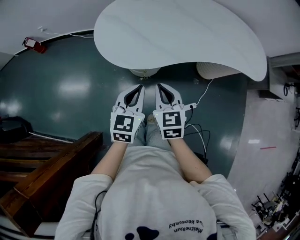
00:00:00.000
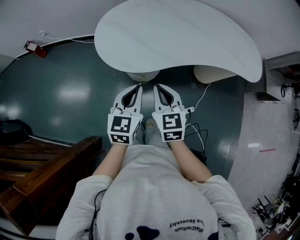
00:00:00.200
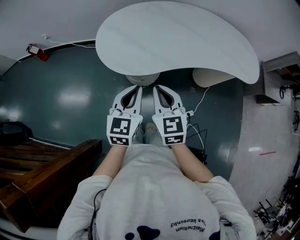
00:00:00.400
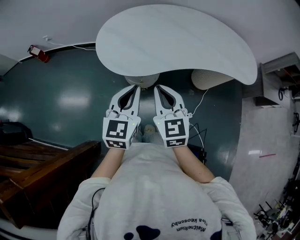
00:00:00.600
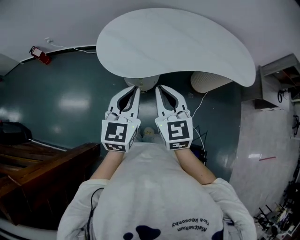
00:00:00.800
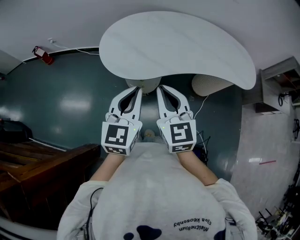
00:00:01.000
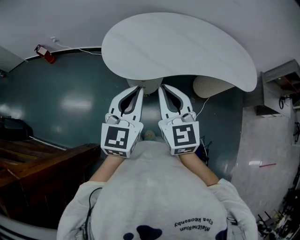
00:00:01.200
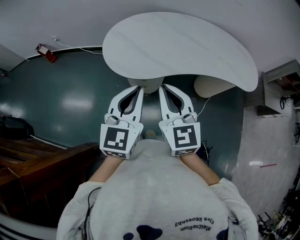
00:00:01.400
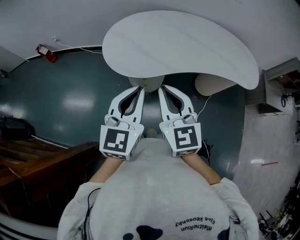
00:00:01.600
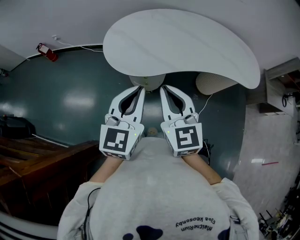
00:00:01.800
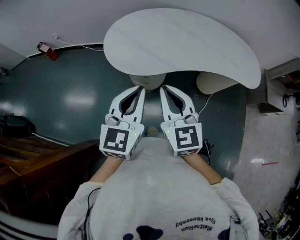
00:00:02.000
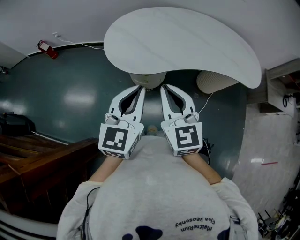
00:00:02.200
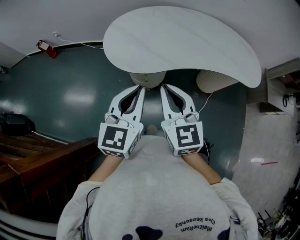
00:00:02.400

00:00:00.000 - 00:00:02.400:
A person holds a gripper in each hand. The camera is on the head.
00:00:00.000 - 00:00:01.200: Both grippers move upward, roughly 15 cm. The right gripper changes its angle by some 20 degrees.
00:00:01.200 - 00:00:02.400: The grippers move only a little.

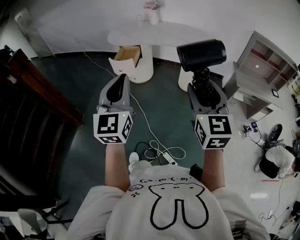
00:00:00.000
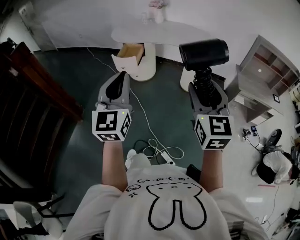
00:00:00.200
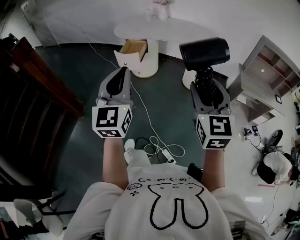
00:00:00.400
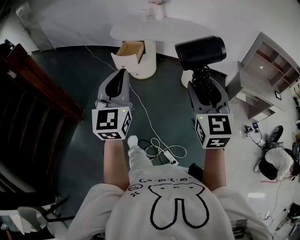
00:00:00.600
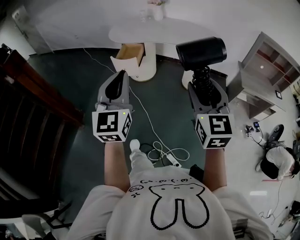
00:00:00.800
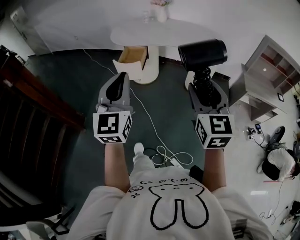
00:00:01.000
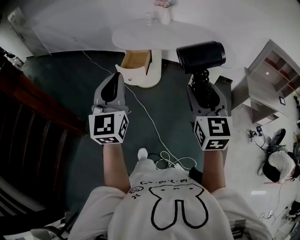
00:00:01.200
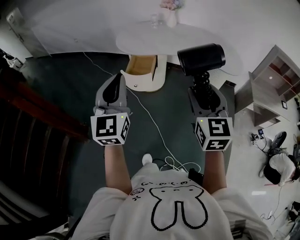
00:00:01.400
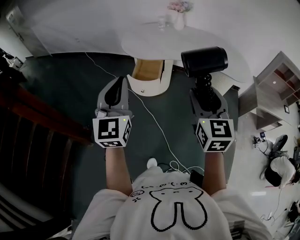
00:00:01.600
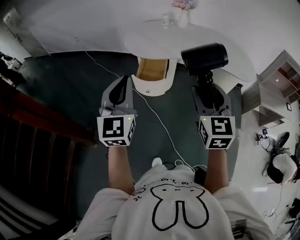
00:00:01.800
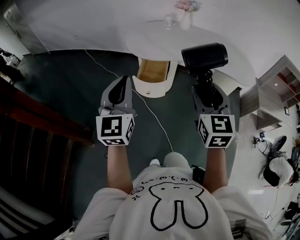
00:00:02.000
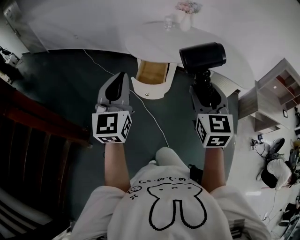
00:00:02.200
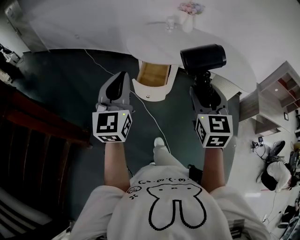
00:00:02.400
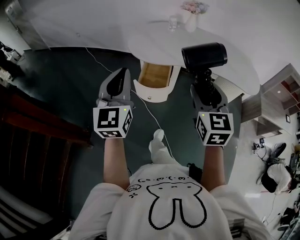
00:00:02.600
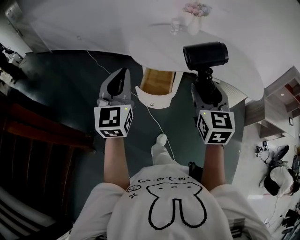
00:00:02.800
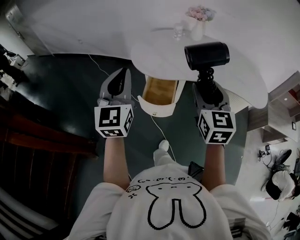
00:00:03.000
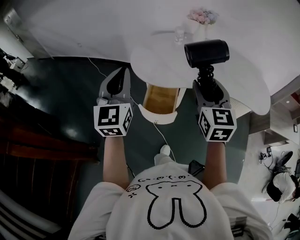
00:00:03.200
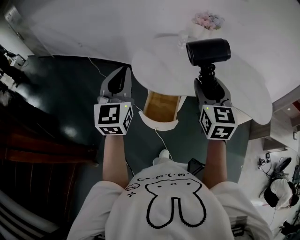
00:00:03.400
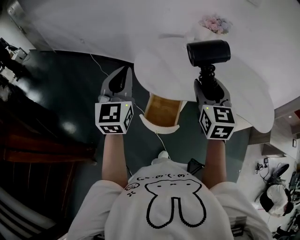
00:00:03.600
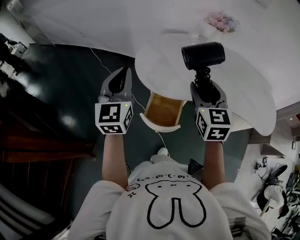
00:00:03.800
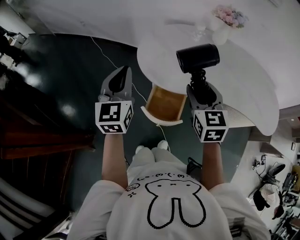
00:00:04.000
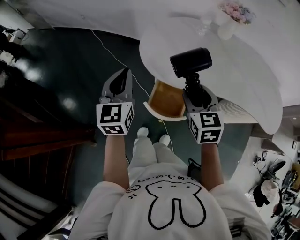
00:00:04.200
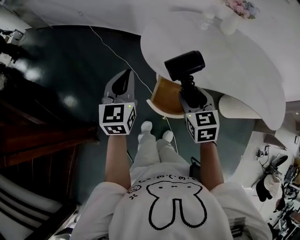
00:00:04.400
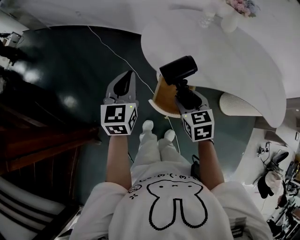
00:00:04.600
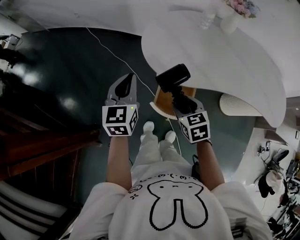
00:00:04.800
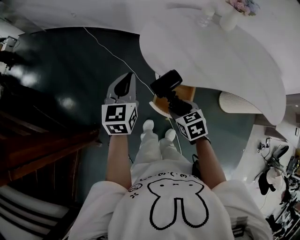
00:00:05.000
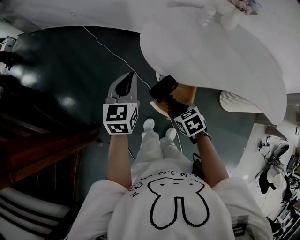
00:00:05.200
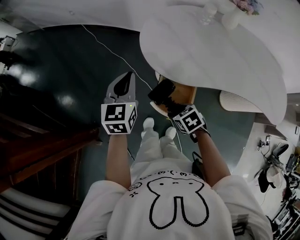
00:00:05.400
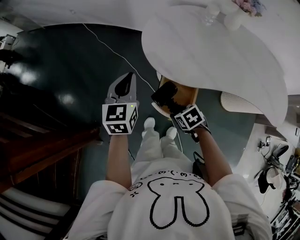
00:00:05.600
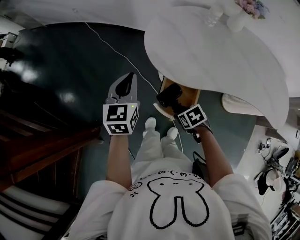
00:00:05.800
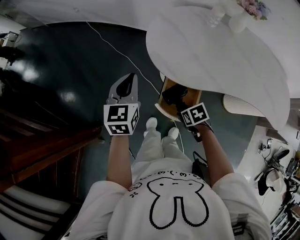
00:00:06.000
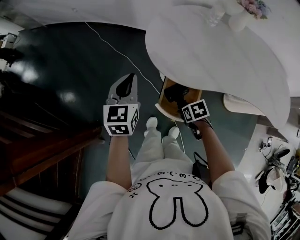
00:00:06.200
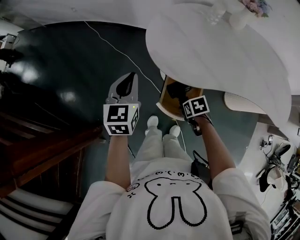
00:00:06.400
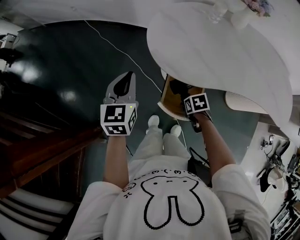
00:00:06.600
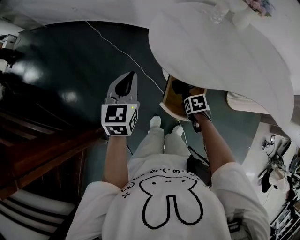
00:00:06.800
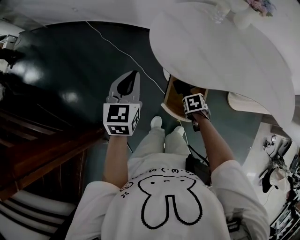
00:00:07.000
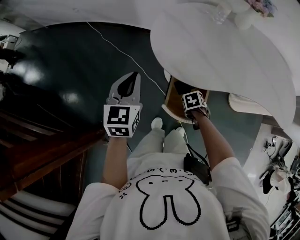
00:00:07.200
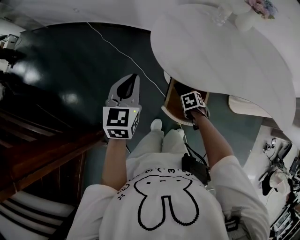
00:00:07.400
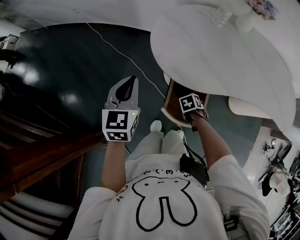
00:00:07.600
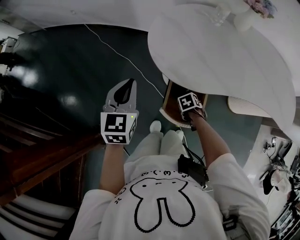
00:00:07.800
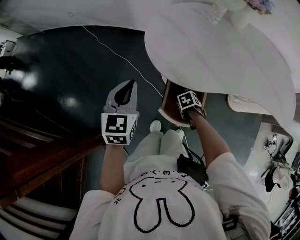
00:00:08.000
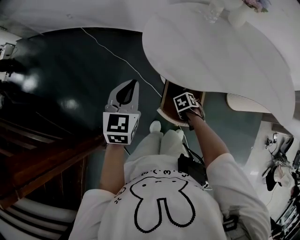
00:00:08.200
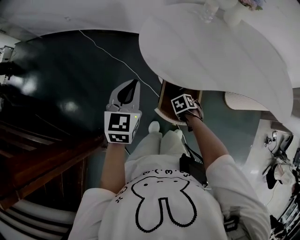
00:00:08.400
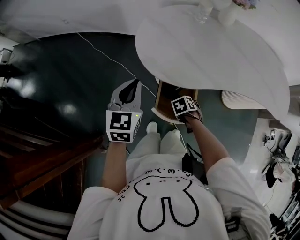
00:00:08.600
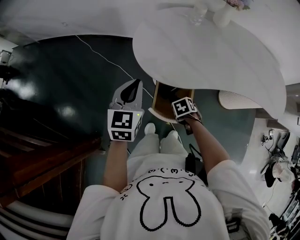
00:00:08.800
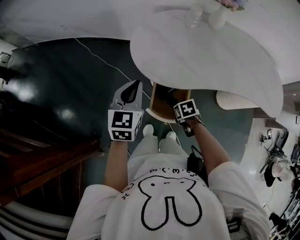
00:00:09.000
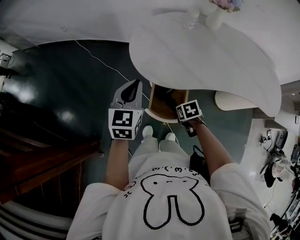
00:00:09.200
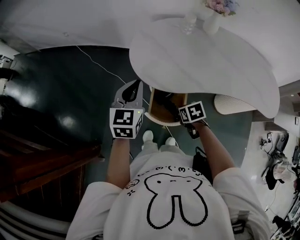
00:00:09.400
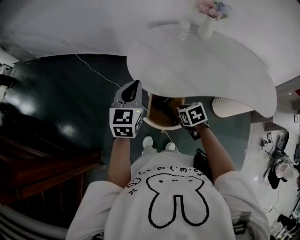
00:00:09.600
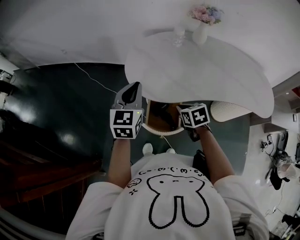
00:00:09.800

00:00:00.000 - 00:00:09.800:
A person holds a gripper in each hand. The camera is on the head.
00:00:00.000 - 00:00:01.400: Both grippers move forward and to the left, roughly 35 cm.
00:00:01.400 - 00:00:02.800: The grippers both shift forward and to the left by about 25 cm.
00:00:02.800 - 00:00:04.200: The two grippers go some 25 cm forward and downward. The right gripper changes its angle by about 20 degrees.
00:00:04.200 - 00:00:05.600: The left gripper heads downward and forward, covering roughly 10 cm. Meanwhile the right gripper is displaced downward by some 25 cm, and angles its fingers downward, by some 40 degrees.
00:00:05.600 - 00:00:07.000: The right gripper heads downward, covering approximately 10 cm, and turns by approximately 20 degrees.
00:00:07.000 - 00:00:08.400: The grippers move only a little.
00:00:08.400 - 00:00:09.800: The right gripper heads upward, covering roughly 25 cm, tilts its fingers some 30 degrees upward, and closes, while the left gripper moves upward, roughly 10 cm.

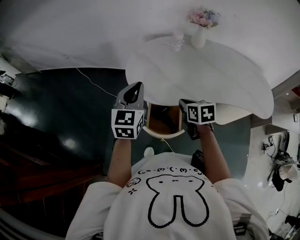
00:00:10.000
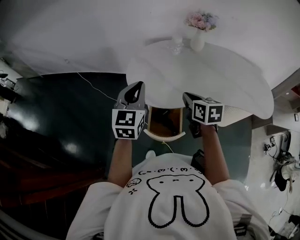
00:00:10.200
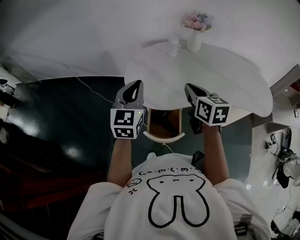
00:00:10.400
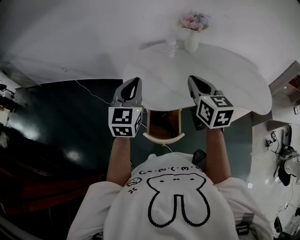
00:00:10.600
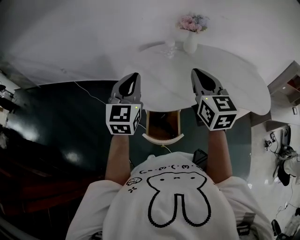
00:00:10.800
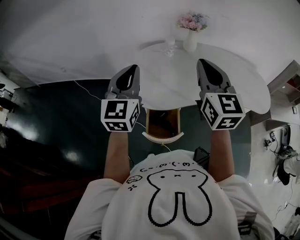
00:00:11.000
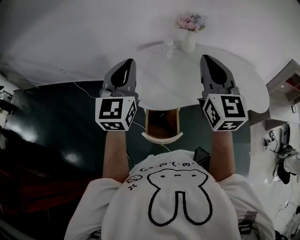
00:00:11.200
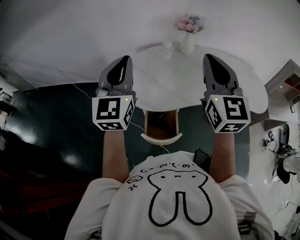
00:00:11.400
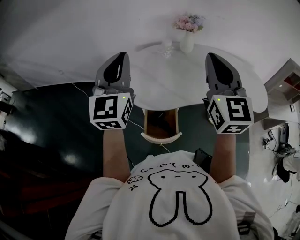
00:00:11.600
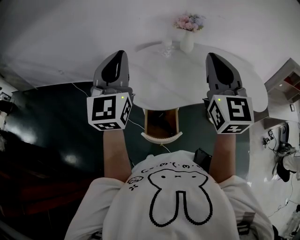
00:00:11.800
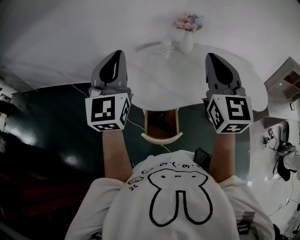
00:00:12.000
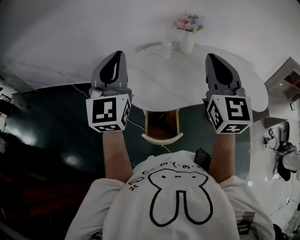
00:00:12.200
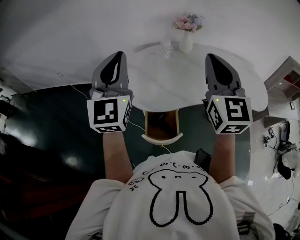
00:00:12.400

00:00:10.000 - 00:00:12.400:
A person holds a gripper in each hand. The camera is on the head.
00:00:10.000 - 00:00:11.200: The right gripper is displaced upward by some 30 cm, and angles its fingers upward, by about 50 degrees. Meanwhile the left gripper shifts some 15 cm upward.
00:00:11.200 - 00:00:12.400: The grippers move only a little.

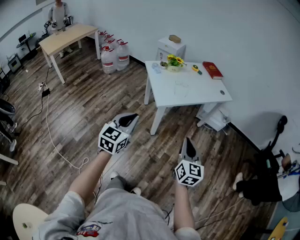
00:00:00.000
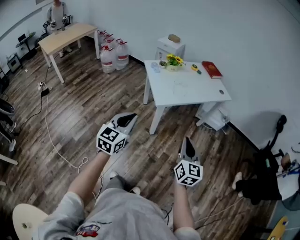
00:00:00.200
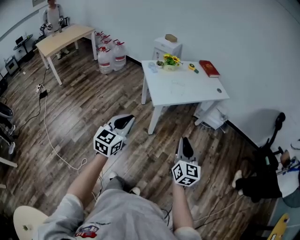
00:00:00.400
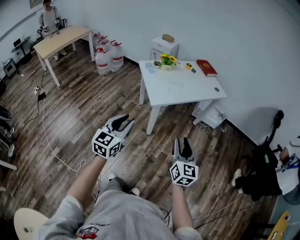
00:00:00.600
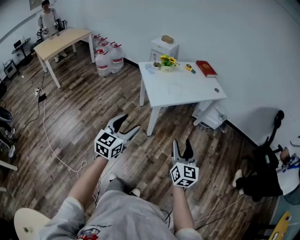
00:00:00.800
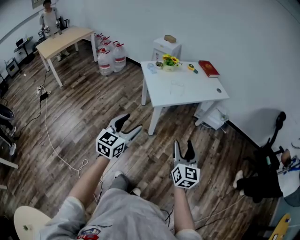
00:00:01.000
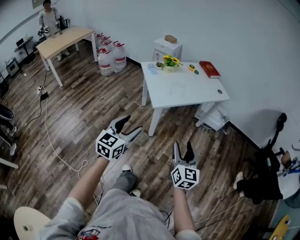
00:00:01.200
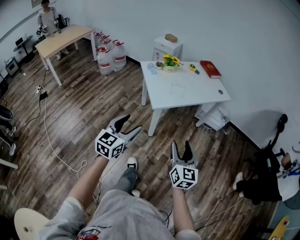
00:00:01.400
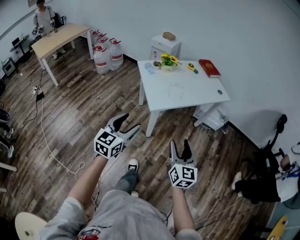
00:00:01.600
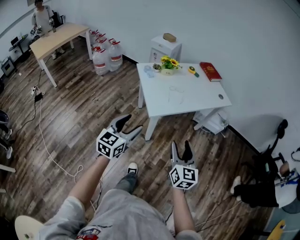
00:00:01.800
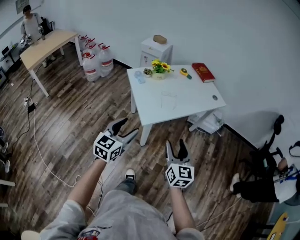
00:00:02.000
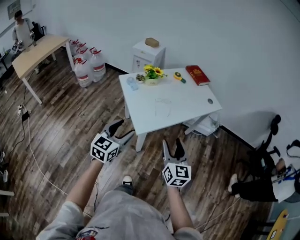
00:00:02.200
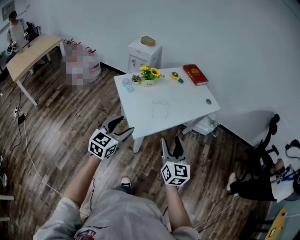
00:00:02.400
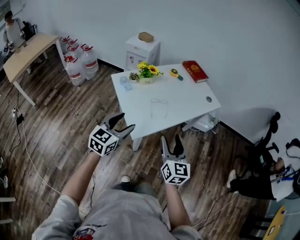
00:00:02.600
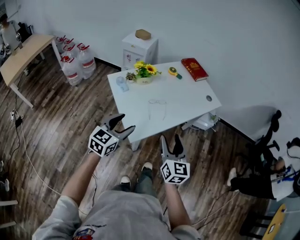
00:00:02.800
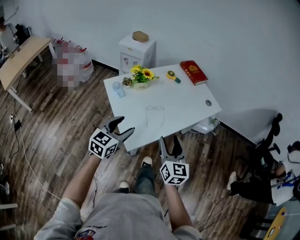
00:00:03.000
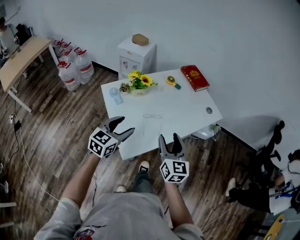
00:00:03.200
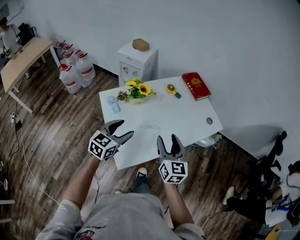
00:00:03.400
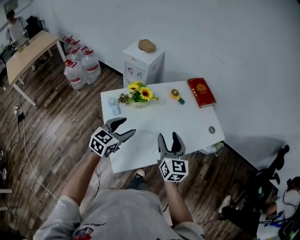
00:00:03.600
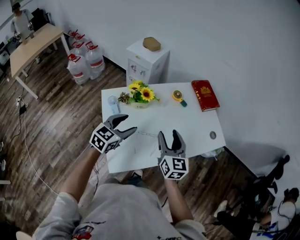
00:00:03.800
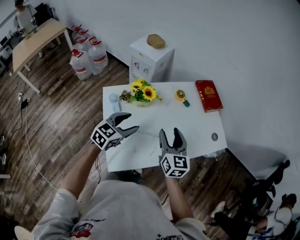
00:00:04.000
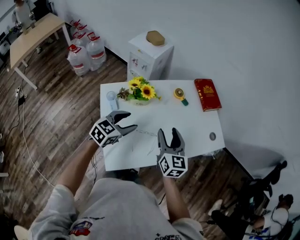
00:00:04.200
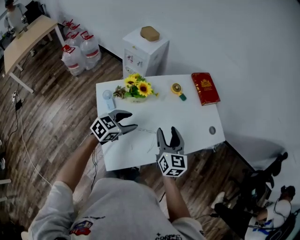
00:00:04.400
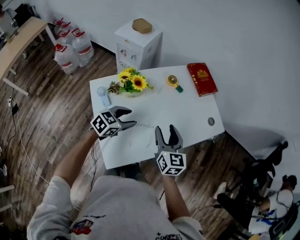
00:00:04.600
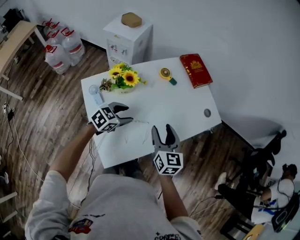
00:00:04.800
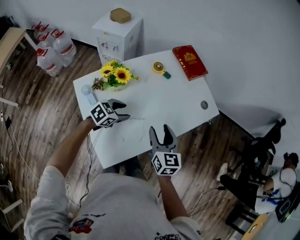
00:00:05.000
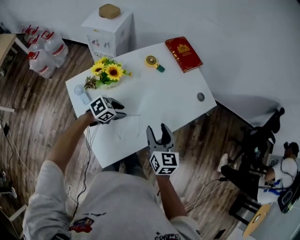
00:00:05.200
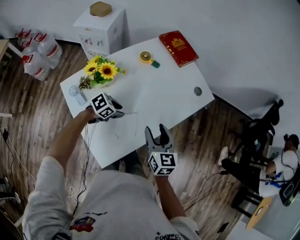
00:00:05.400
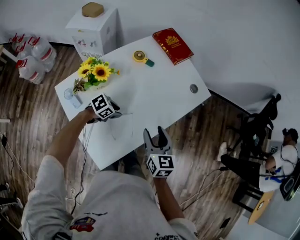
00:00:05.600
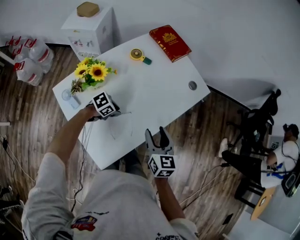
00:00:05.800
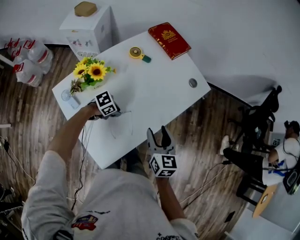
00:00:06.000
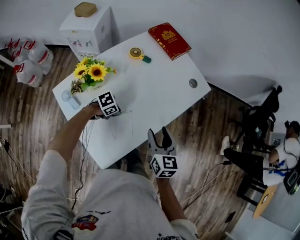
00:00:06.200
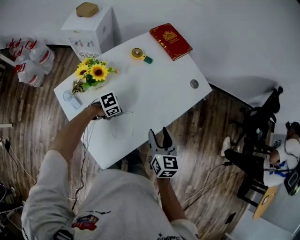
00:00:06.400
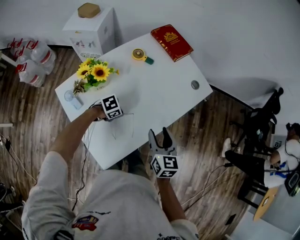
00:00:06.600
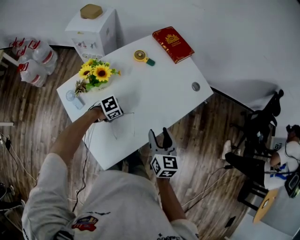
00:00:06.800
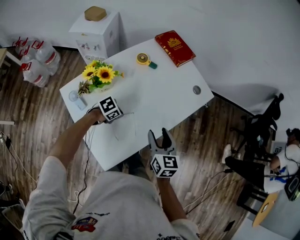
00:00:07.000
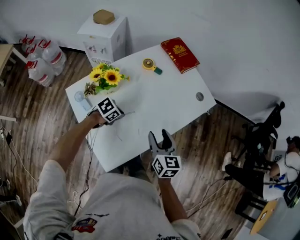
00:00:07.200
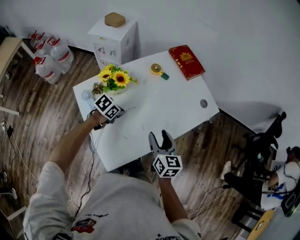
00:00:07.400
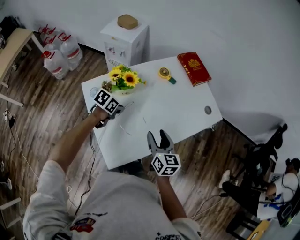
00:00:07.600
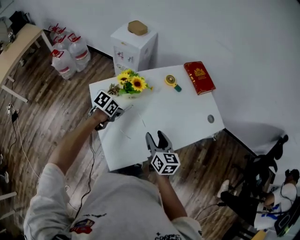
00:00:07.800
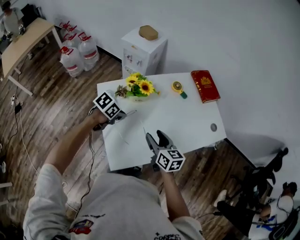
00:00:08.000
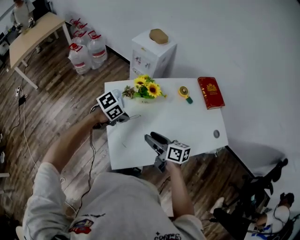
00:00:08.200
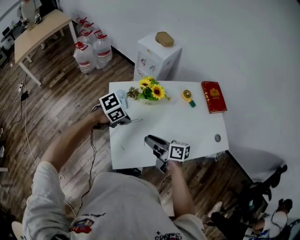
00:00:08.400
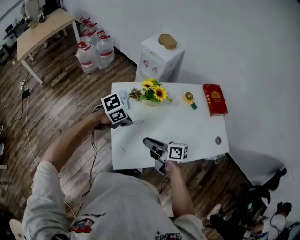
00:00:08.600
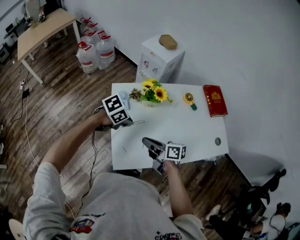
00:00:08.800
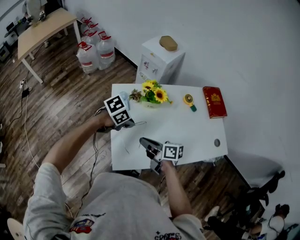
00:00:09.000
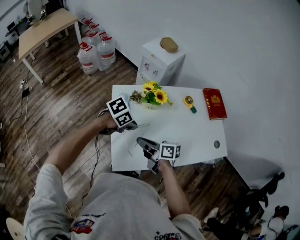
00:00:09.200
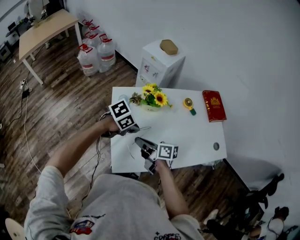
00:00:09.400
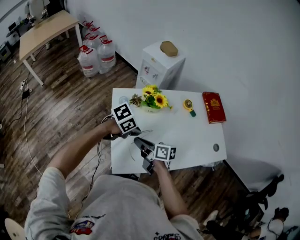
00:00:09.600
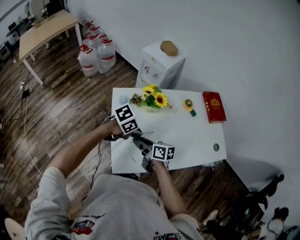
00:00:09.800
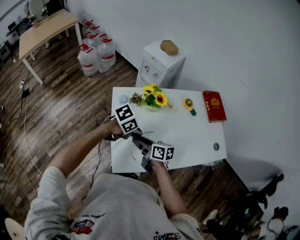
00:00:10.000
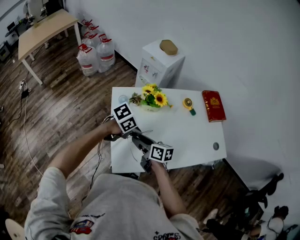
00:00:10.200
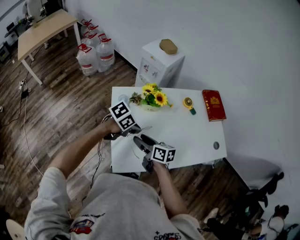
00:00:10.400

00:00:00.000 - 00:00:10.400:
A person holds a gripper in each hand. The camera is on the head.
00:00:00.000 - 00:00:01.400: The left gripper opens; the right gripper opens.
00:00:01.400 - 00:00:03.000: The two grippers travel together, forward, about 50 cm.
00:00:03.000 - 00:00:04.400: The two grippers go approximately 30 cm forward.
00:00:04.400 - 00:00:06.000: The left gripper moves downward, roughly 20 cm, turns by some 60 degrees, and closes, while the right gripper moves roughly 15 cm, and changes its angle by approximately 30 degrees.
00:00:06.000 - 00:00:07.400: The right gripper shifts by about 5 cm. Meanwhile the left gripper shifts roughly 10 cm upward, and swivels some 30 degrees.
00:00:07.400 - 00:00:09.000: The right gripper moves approximately 20 cm, changes its angle by approximately 70 degrees, and closes its fingers. The left gripper ends up about 20 cm from where it was.
00:00:09.000 - 00:00:10.400: The right gripper opens.
